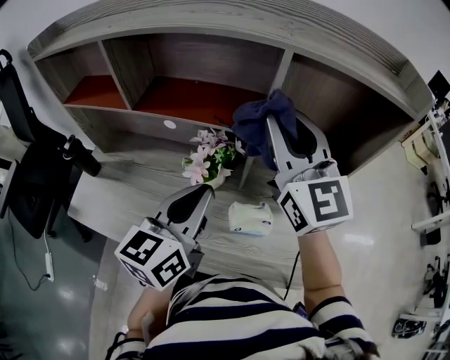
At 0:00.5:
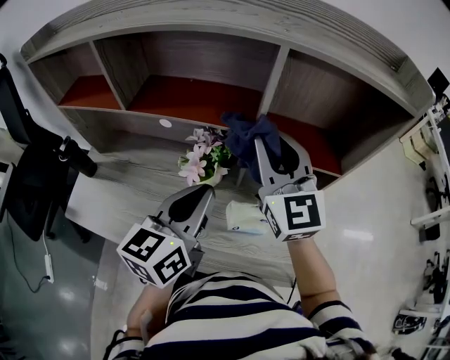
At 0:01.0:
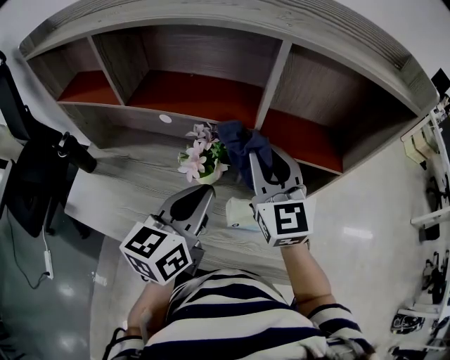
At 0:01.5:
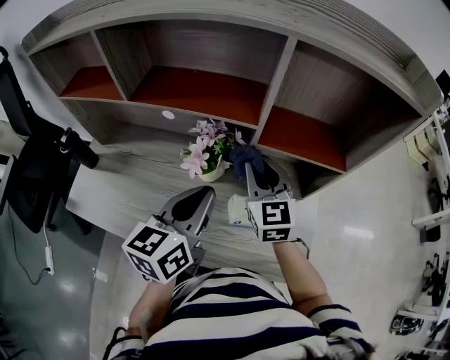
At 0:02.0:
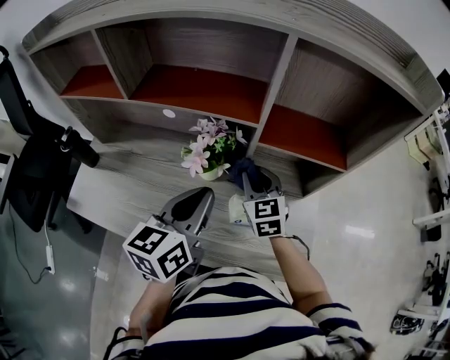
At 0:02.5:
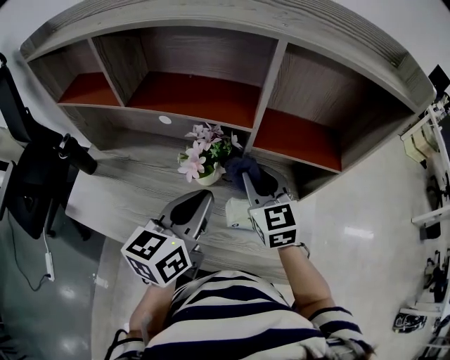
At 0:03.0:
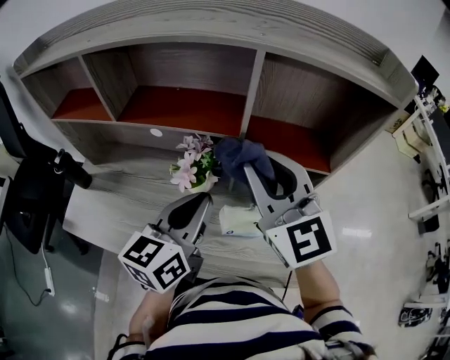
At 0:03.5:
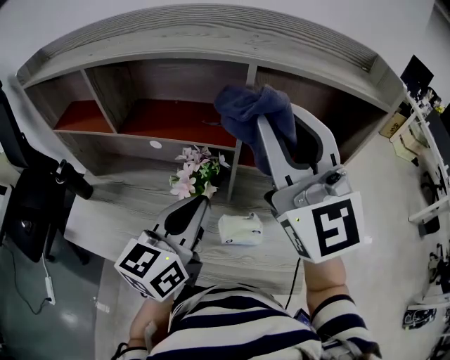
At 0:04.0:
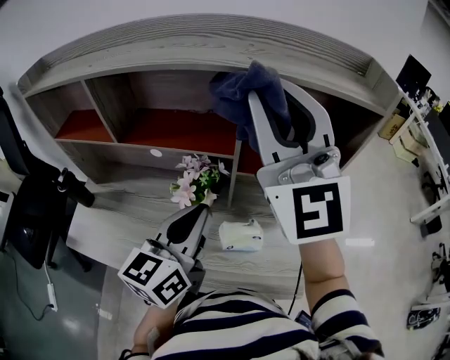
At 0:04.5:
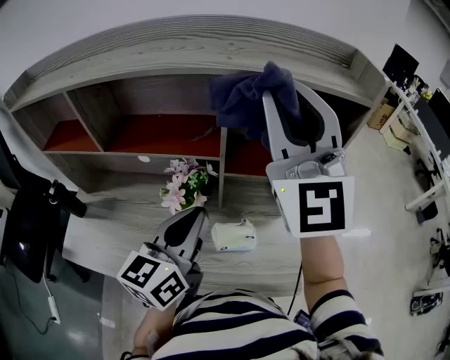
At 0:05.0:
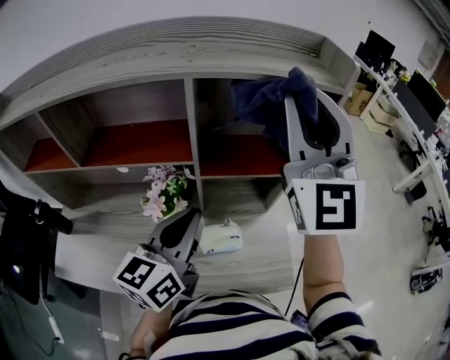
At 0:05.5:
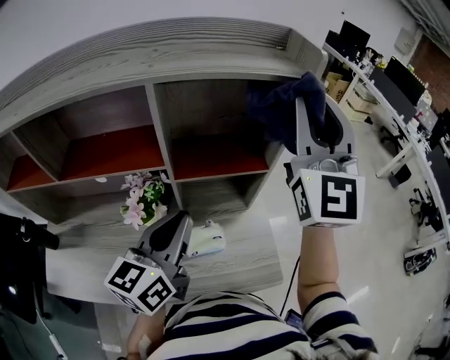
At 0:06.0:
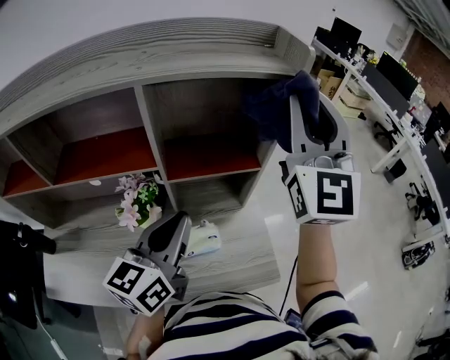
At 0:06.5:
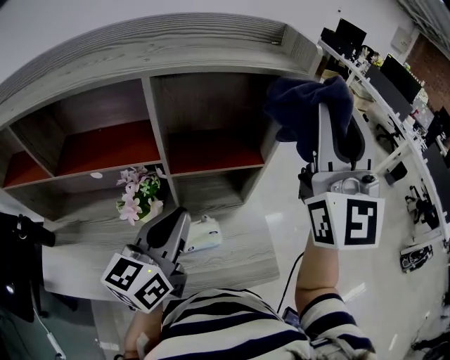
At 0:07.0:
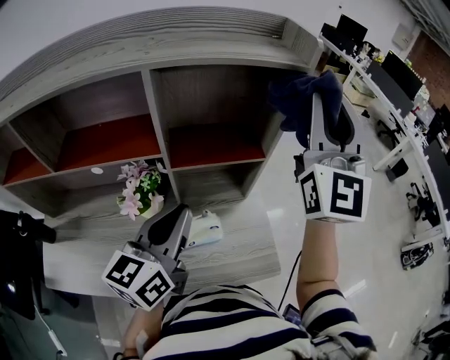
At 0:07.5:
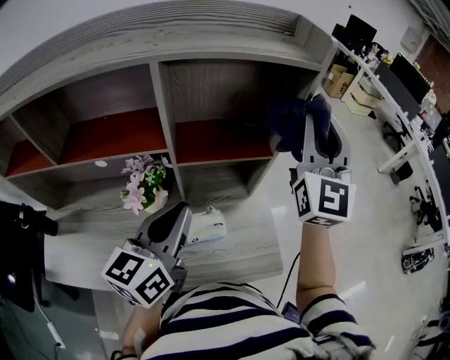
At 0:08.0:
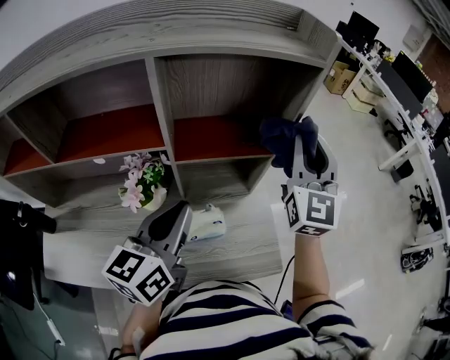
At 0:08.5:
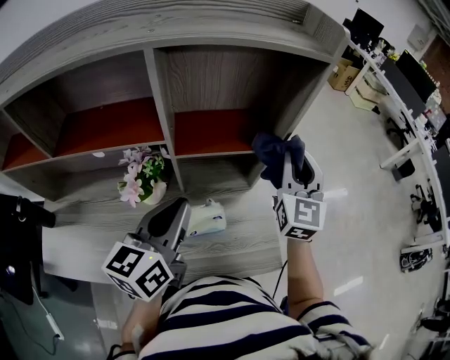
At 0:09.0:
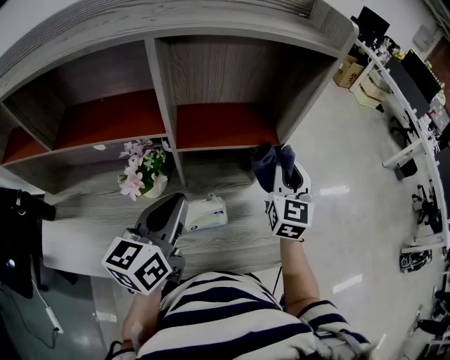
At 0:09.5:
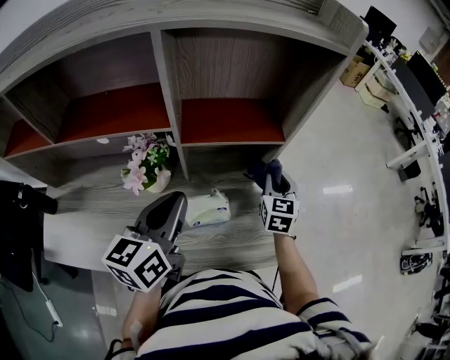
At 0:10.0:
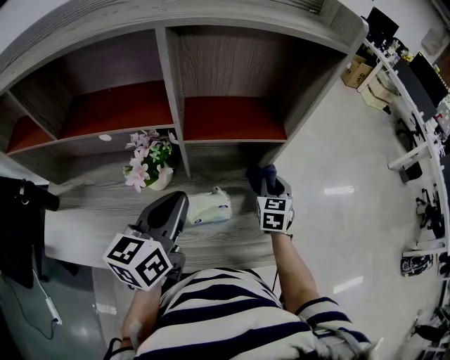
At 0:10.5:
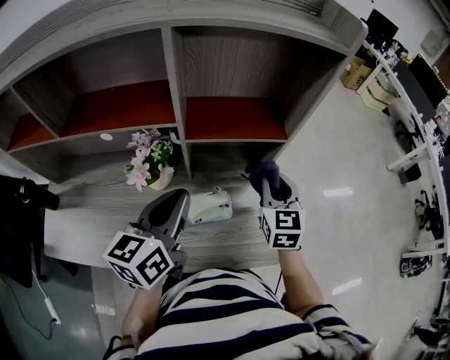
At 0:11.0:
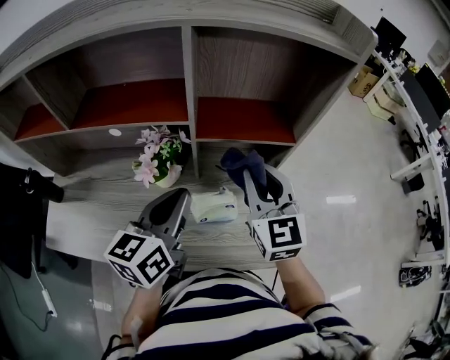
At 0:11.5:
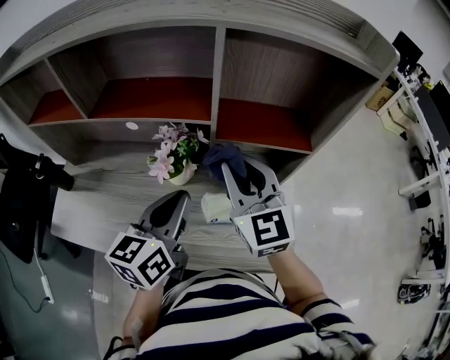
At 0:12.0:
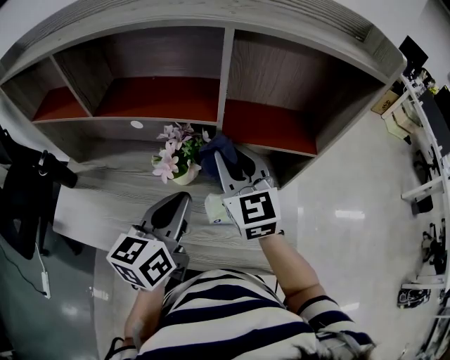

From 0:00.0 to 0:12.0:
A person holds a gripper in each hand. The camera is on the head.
From 0:00.0 to 0:02.0: The right gripper shifts about 30 cm downward, and tips its fingers downward by about 30 degrees. The left gripper shifts about 5 cm downward.
From 0:02.0 to 0:04.0: The right gripper heads upward, covering roughly 40 cm, and tips its fingers upward by some 50 degrees. Meanwhile the left gripper is displaced upward by about 5 cm.
From 0:04.0 to 0:06.0: The left gripper changes place by approximately 10 cm. The right gripper ends up roughly 20 cm from where it was, and swivels some 30 degrees.
From 0:06.0 to 0:08.0: The right gripper heads downward, covering some 15 cm.
From 0:08.0 to 0:10.0: The right gripper shifts roughly 30 cm downward, and tilts its fingers some 40 degrees downward.
From 0:10.0 to 0:12.0: The right gripper goes roughly 30 cm to the left and upward, and rotates roughly 40 degrees; the left gripper goes some 5 cm to the left.

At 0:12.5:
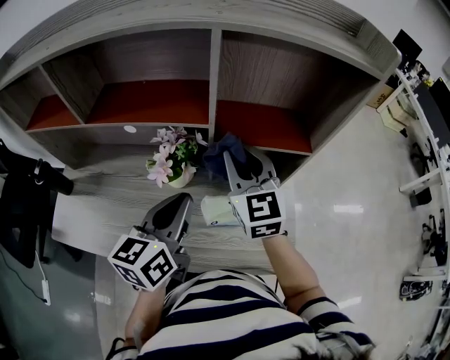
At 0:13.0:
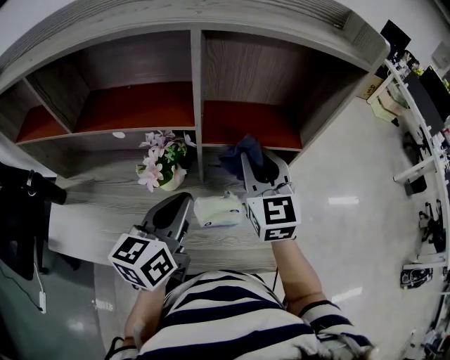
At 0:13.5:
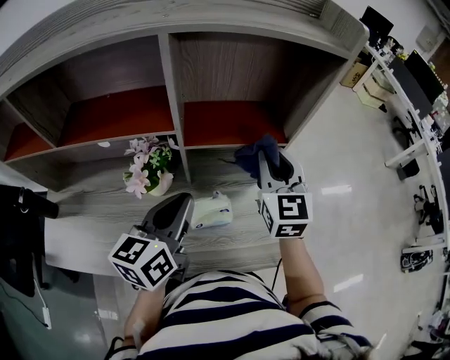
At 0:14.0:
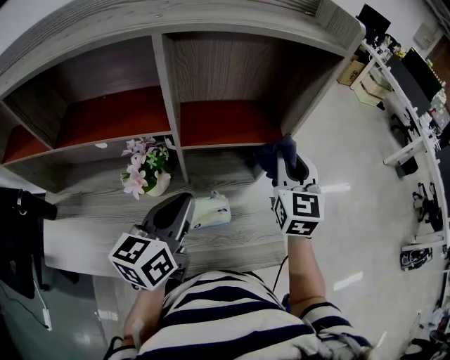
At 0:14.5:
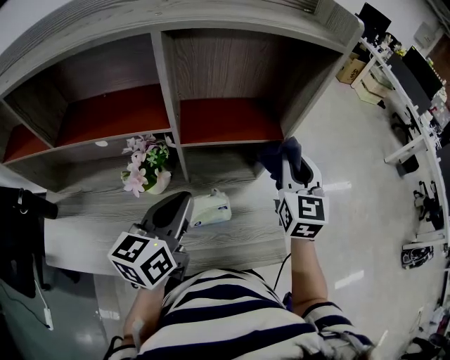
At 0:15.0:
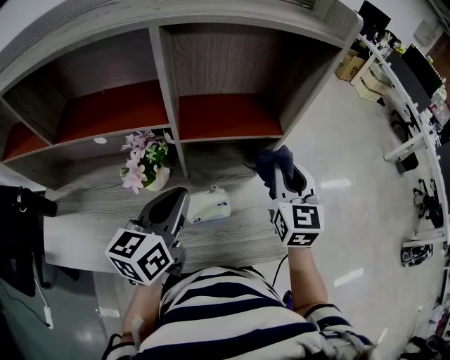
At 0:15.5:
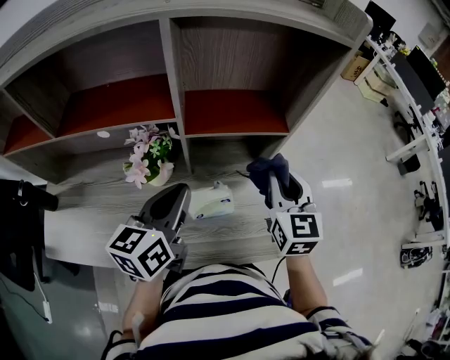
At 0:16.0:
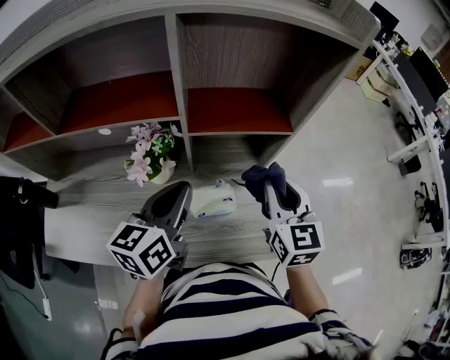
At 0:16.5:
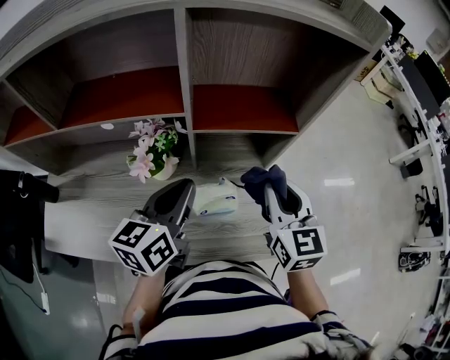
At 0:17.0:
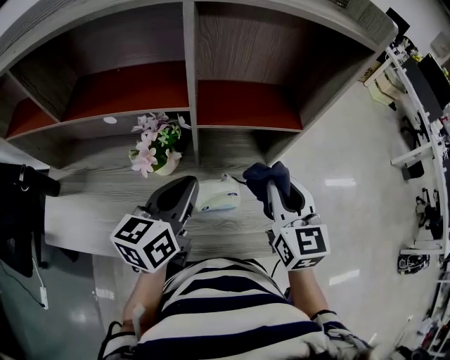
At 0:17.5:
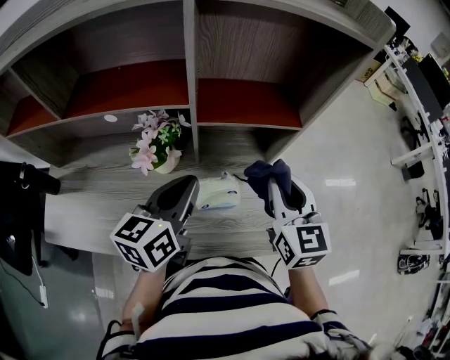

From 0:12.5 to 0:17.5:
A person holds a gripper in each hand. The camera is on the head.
From 0:12.5 to 0:15.0: The right gripper goes some 20 cm to the right, and turns by approximately 30 degrees. Meanwhile the left gripper changes place by roughly 5 cm.
From 0:15.0 to 0:17.5: The right gripper heads backward, covering approximately 5 cm.

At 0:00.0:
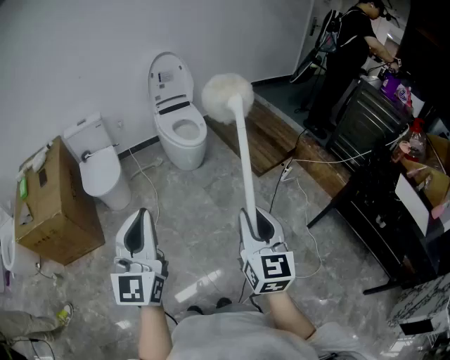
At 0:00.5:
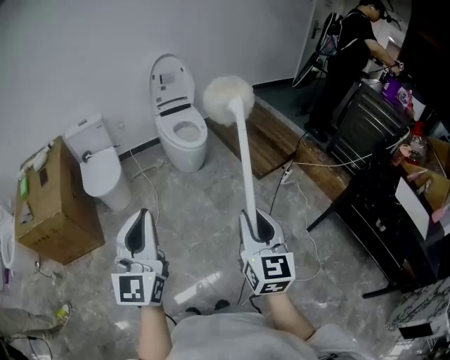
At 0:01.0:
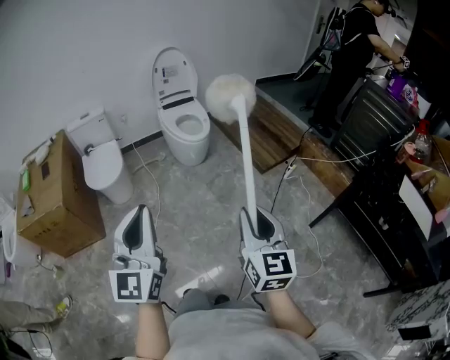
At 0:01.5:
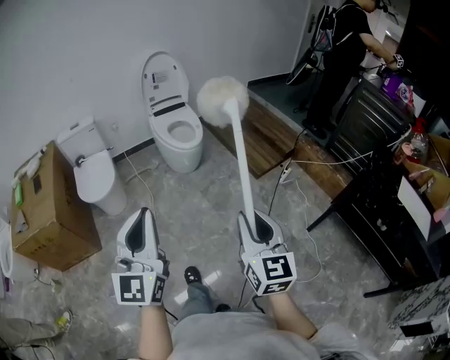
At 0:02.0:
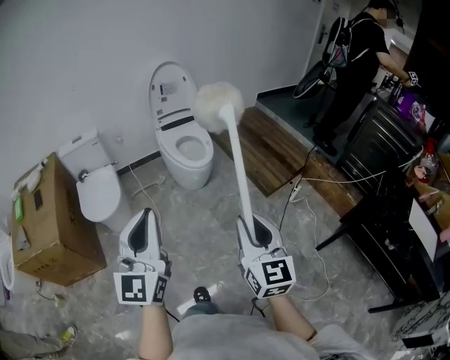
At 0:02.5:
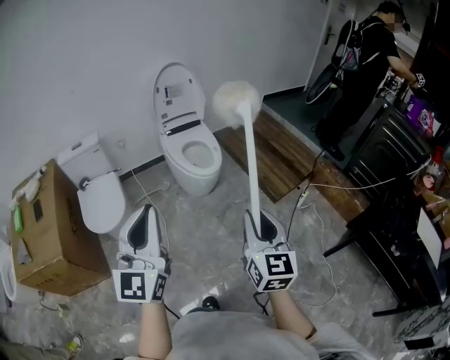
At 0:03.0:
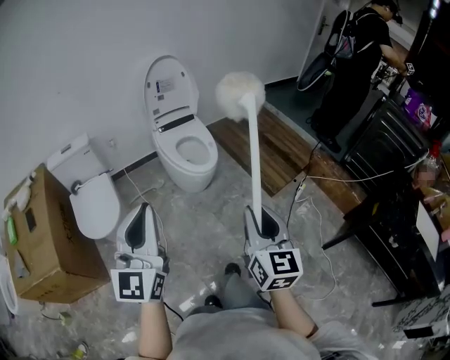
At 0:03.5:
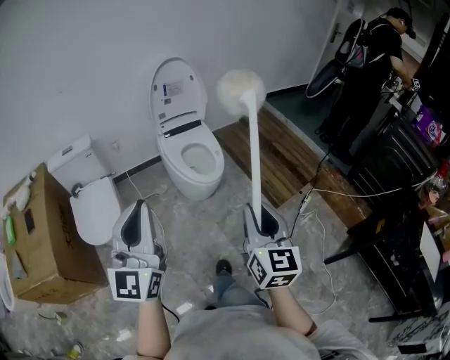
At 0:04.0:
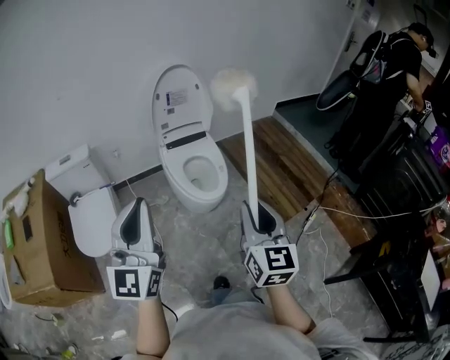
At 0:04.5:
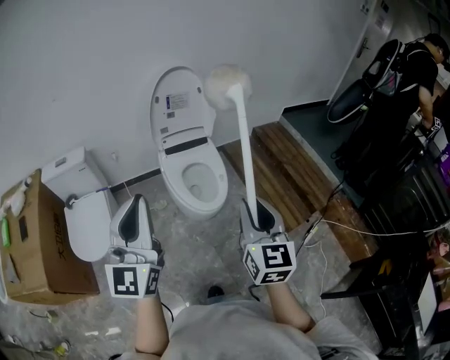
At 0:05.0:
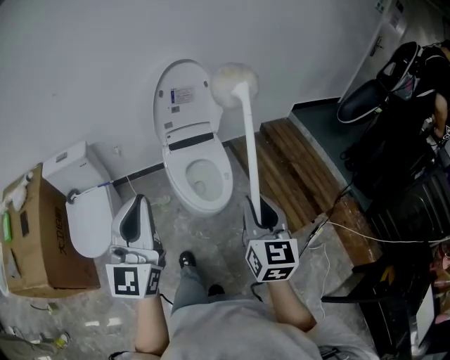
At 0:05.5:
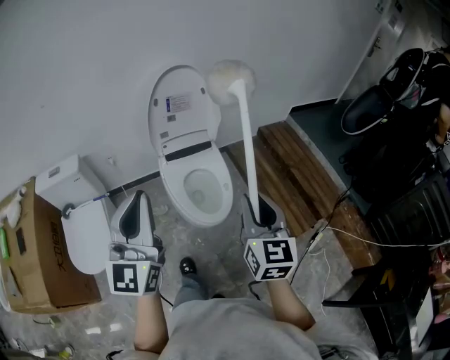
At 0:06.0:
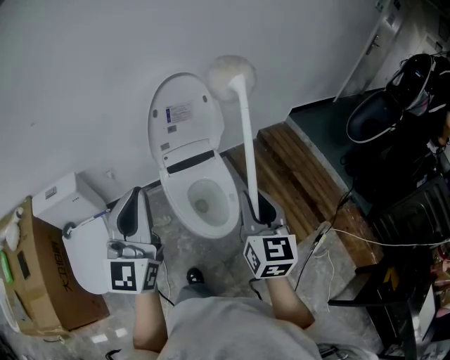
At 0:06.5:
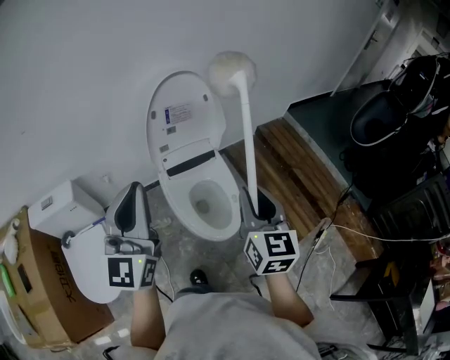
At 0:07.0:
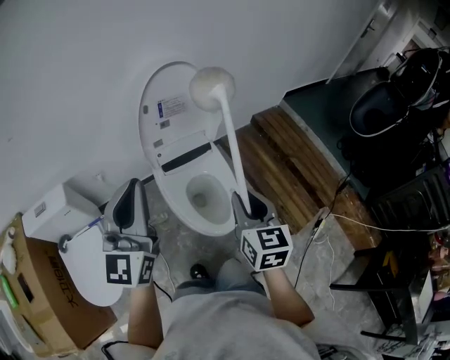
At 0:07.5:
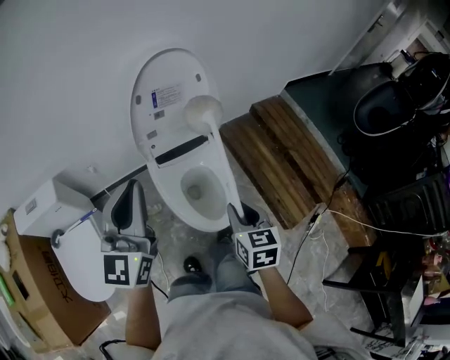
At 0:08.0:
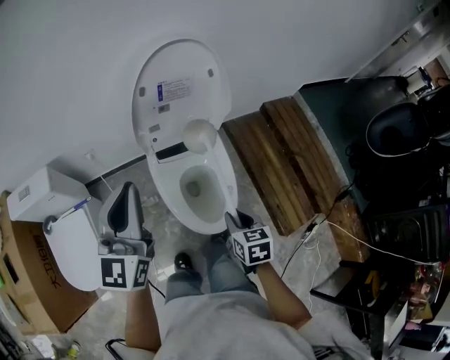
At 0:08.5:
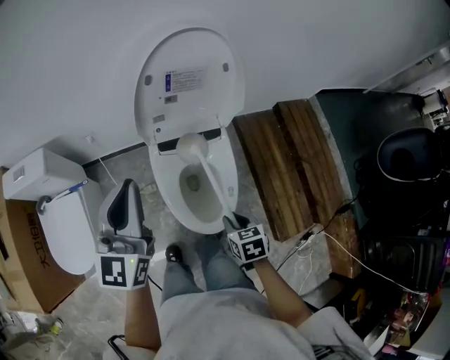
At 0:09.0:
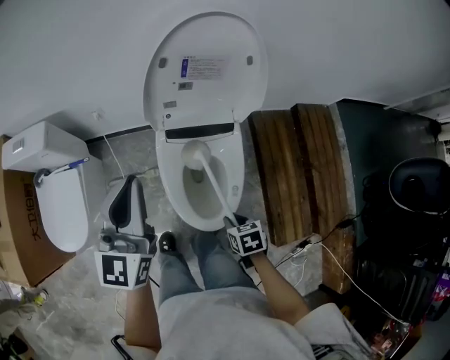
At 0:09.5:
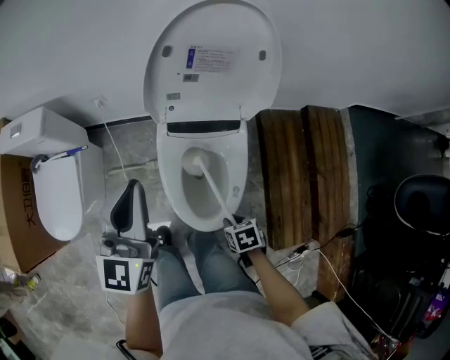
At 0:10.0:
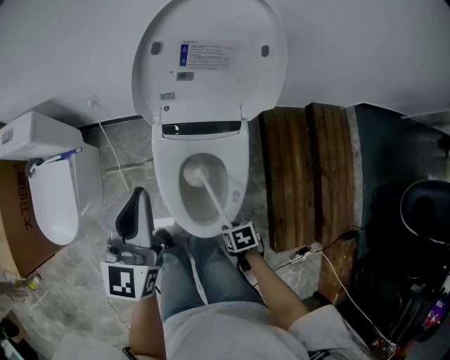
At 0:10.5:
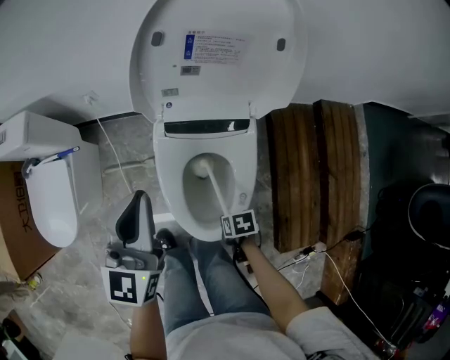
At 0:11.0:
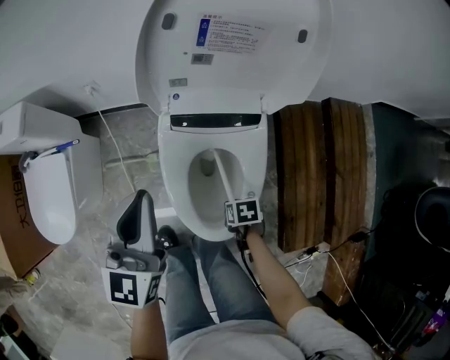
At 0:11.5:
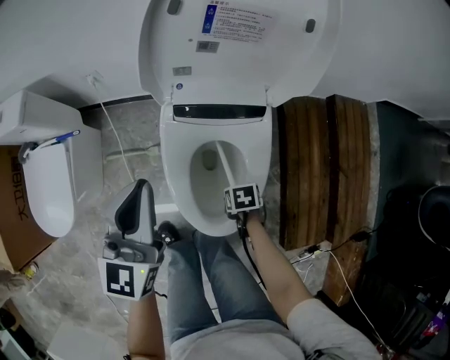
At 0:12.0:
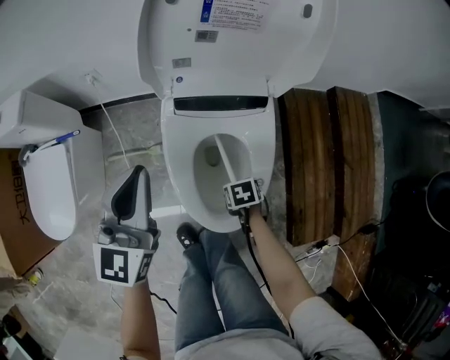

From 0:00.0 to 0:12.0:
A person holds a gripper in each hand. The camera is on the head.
From 0:00.0 to 0:02.0: The left gripper changes place by about 20 cm.
From 0:02.0 to 0:04.0: The left gripper moves some 35 cm.
From 0:04.0 to 0:06.0: The left gripper moves about 30 cm.
From 0:06.0 to 0:08.0: The left gripper moves about 20 cm.
From 0:08.0 to 0:10.0: The left gripper heads downward, covering some 15 cm.
From 0:10.0 to 0:12.0: The left gripper shifts about 10 cm downward.
